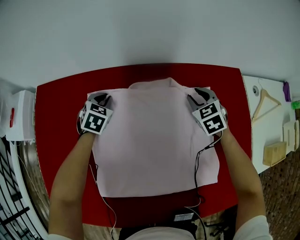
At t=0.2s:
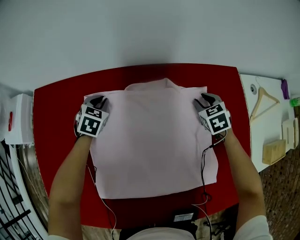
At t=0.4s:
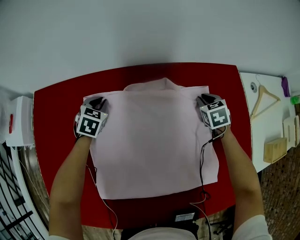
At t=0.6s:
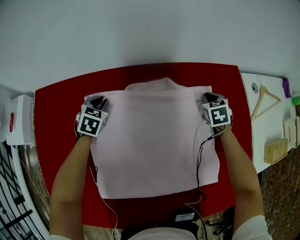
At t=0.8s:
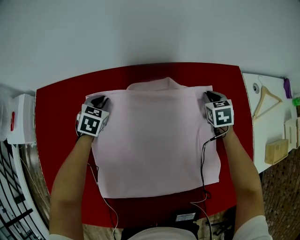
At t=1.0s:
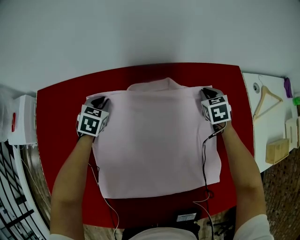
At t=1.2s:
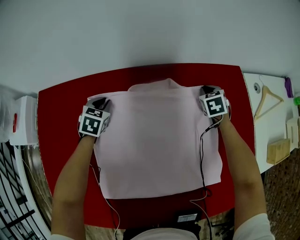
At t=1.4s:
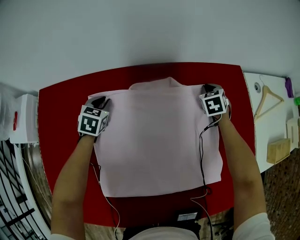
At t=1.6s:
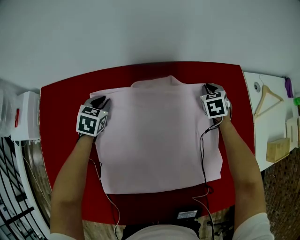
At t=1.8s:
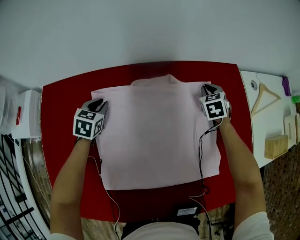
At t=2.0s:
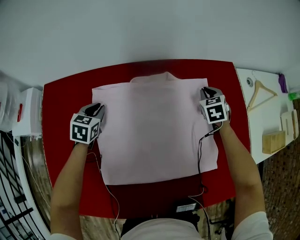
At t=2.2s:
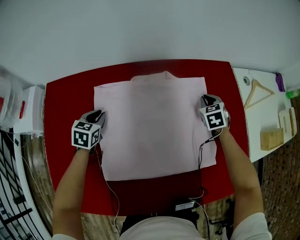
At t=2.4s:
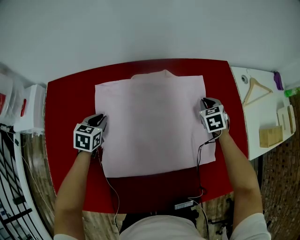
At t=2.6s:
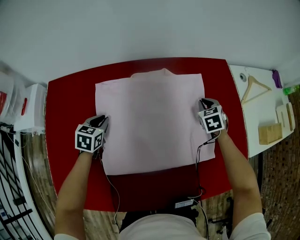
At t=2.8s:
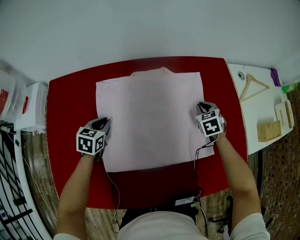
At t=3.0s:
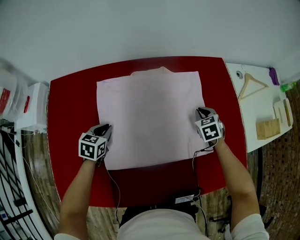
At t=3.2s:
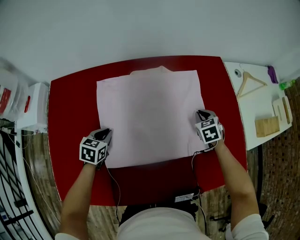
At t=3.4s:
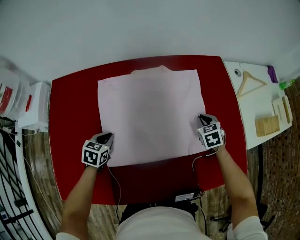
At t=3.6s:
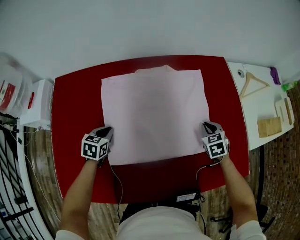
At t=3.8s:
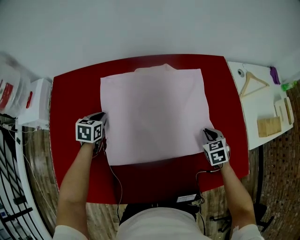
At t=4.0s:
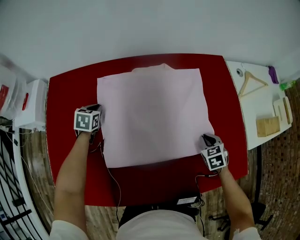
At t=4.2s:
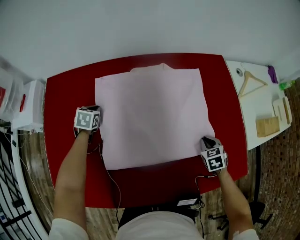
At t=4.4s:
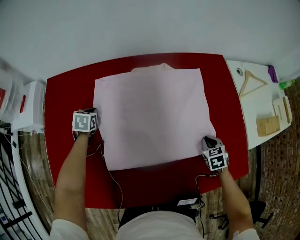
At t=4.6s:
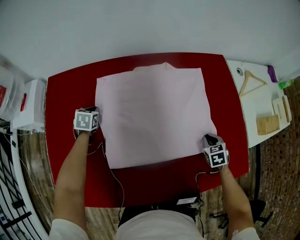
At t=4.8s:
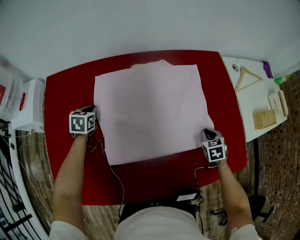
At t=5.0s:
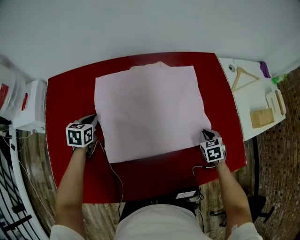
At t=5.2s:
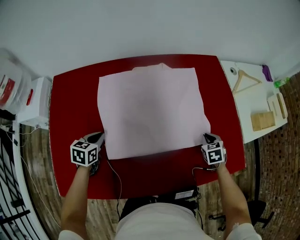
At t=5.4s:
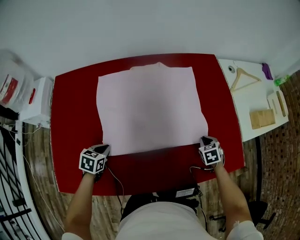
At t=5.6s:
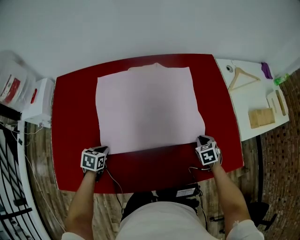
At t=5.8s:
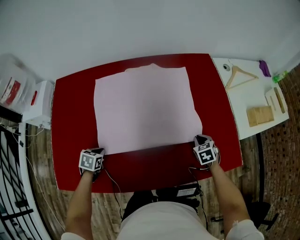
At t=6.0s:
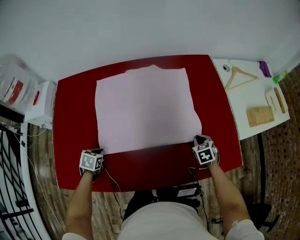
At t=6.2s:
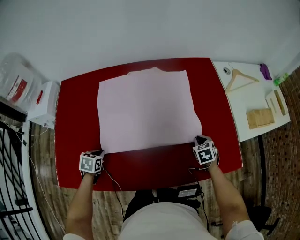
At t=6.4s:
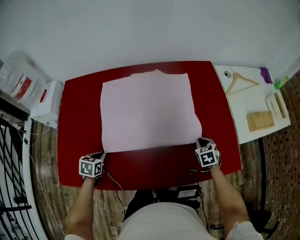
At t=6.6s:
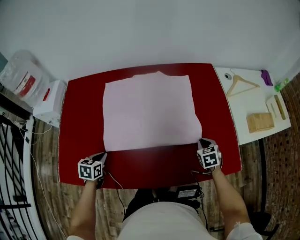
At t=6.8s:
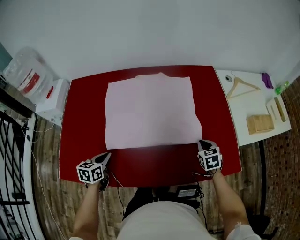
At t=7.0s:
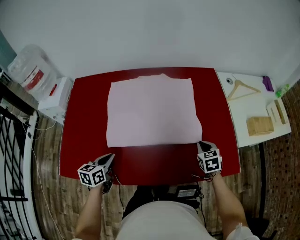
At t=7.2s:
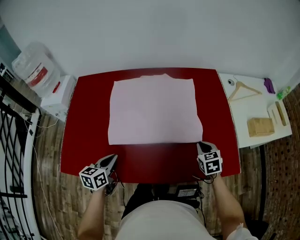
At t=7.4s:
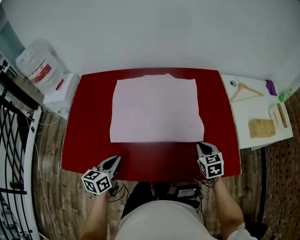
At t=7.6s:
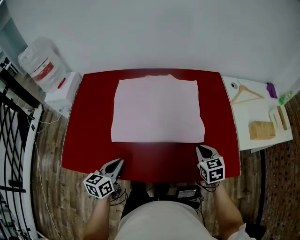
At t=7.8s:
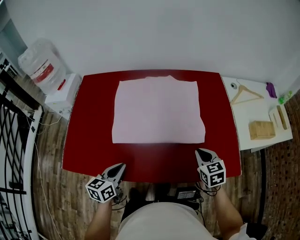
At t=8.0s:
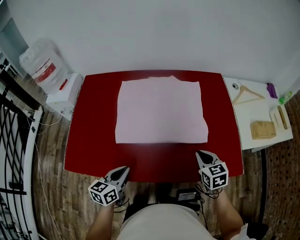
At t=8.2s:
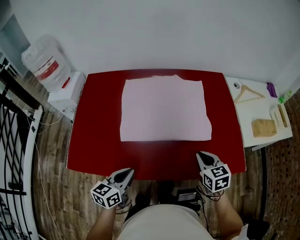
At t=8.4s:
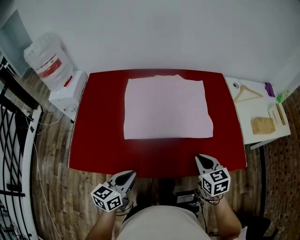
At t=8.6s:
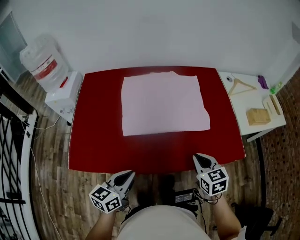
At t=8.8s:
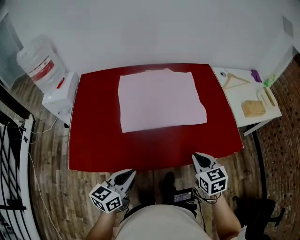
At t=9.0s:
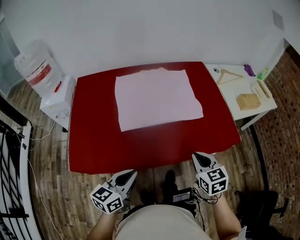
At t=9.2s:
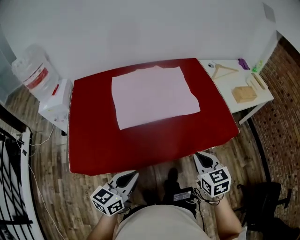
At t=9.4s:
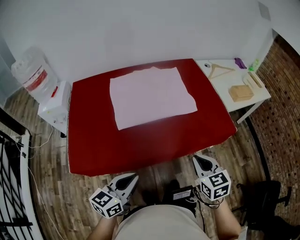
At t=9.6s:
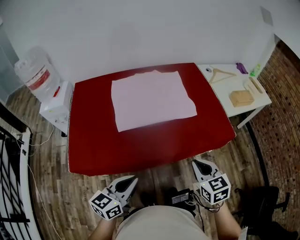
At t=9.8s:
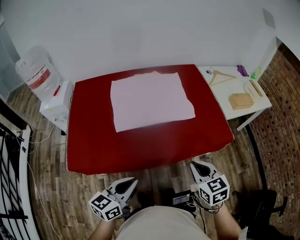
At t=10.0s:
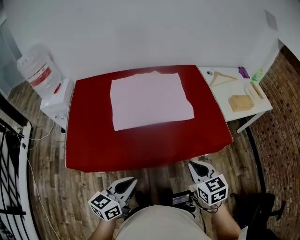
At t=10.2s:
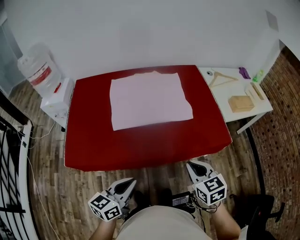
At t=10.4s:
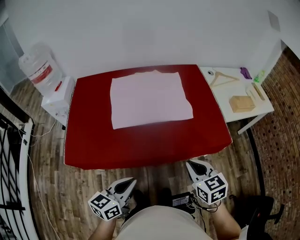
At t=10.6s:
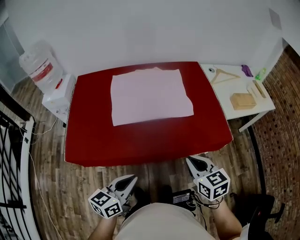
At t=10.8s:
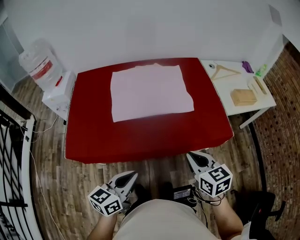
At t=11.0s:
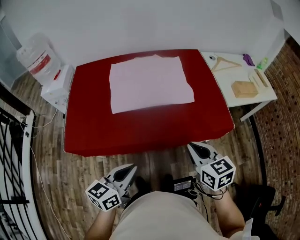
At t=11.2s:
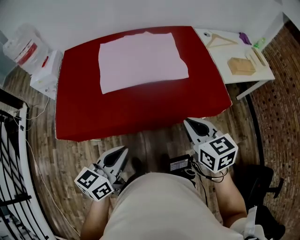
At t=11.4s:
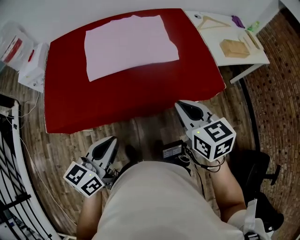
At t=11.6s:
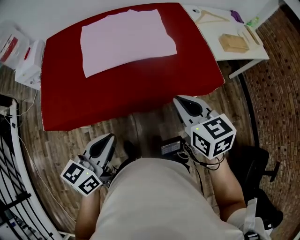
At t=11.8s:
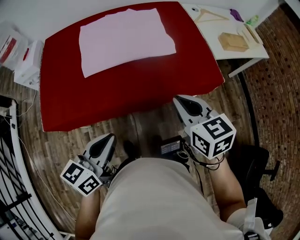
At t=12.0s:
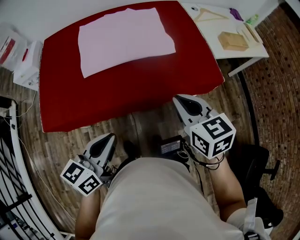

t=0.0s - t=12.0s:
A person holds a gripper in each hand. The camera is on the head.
t=0.0s - t=1.6s: The right gripper goes roughly 10 cm to the right.
t=1.6s - t=3.0s: Both grippers move backward, roughly 20 cm.
t=3.0s - t=4.4s: The left gripper shifts approximately 15 cm to the left, forward and downward. The right gripper travels backward and to the right by some 15 cm.
t=4.4s - t=6.0s: The left gripper travels backward and to the right by some 25 cm, while the right gripper ends up about 5 cm from where it was.
t=6.0s - t=7.6s: The right gripper heads upward and backward, covering approximately 15 cm, and turns by about 20 degrees, while the left gripper moves upward, to the right and backward, approximately 25 cm, and angles its fingers upward, by about 40 degrees.
t=7.6s - t=9.0s: The right gripper goes roughly 20 cm backward and to the left. The left gripper travels backward and upward by approximately 15 cm, and rotates about 20 degrees.
t=9.0s - t=10.4s: The left gripper is displaced to the right by roughly 10 cm. Meanwhile the right gripper shifts by roughly 5 cm.
t=10.4s - t=12.0s: The grippers stay close to where they were, moving slightly.

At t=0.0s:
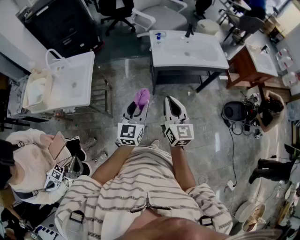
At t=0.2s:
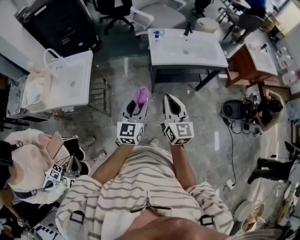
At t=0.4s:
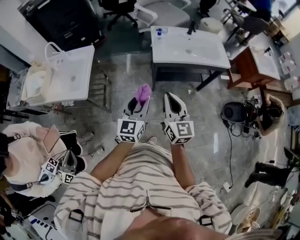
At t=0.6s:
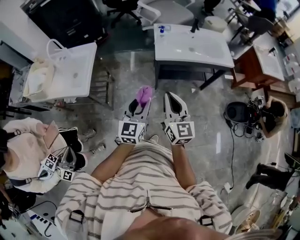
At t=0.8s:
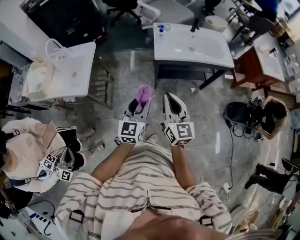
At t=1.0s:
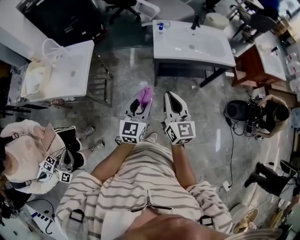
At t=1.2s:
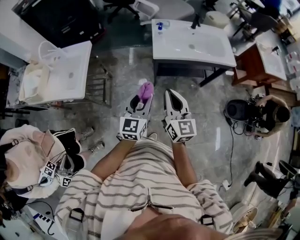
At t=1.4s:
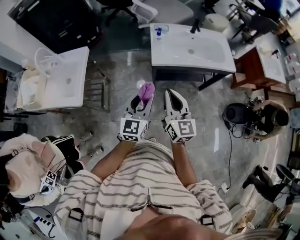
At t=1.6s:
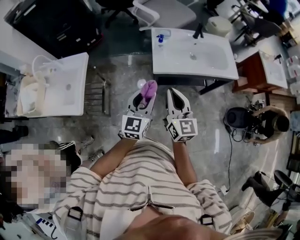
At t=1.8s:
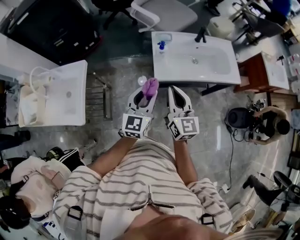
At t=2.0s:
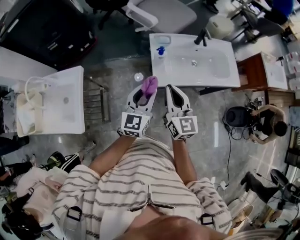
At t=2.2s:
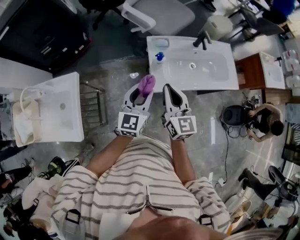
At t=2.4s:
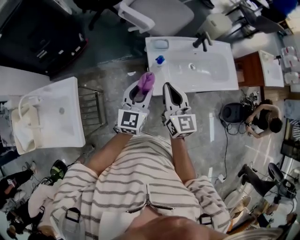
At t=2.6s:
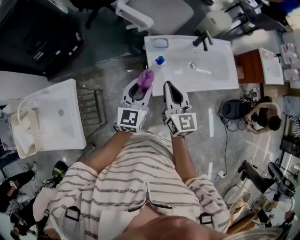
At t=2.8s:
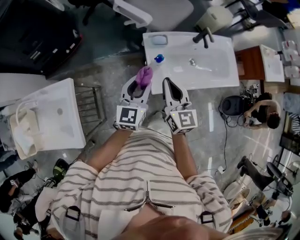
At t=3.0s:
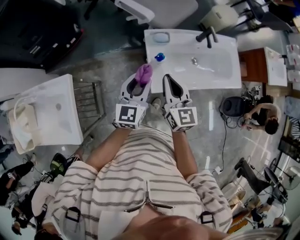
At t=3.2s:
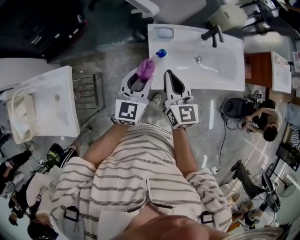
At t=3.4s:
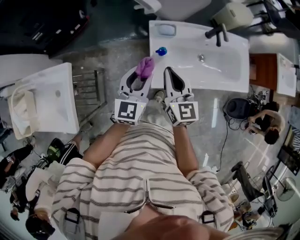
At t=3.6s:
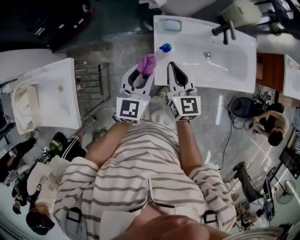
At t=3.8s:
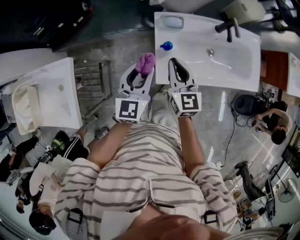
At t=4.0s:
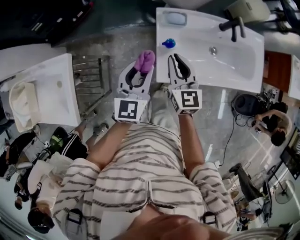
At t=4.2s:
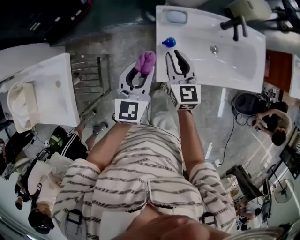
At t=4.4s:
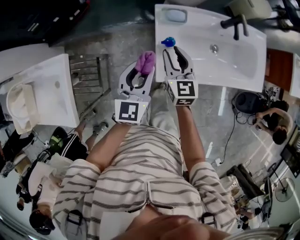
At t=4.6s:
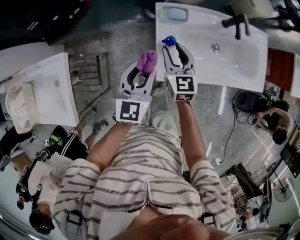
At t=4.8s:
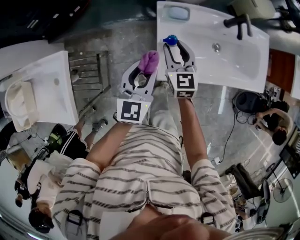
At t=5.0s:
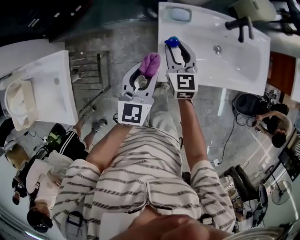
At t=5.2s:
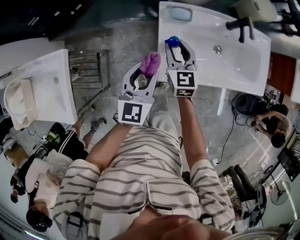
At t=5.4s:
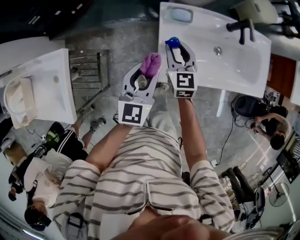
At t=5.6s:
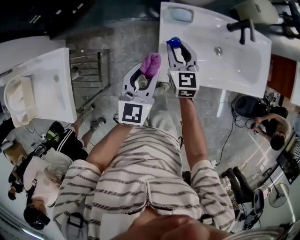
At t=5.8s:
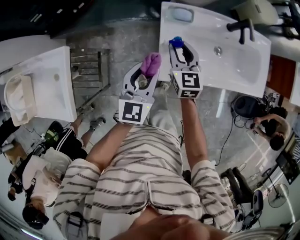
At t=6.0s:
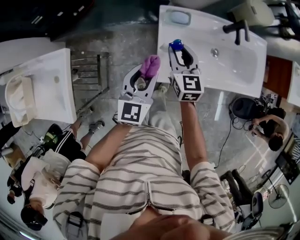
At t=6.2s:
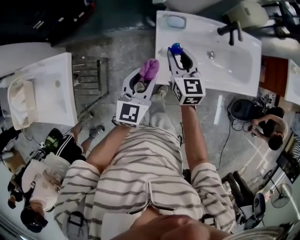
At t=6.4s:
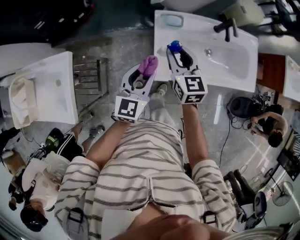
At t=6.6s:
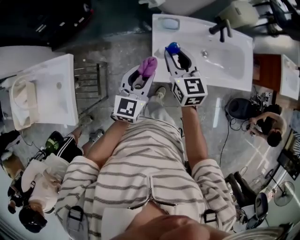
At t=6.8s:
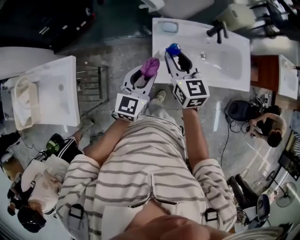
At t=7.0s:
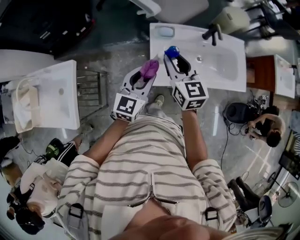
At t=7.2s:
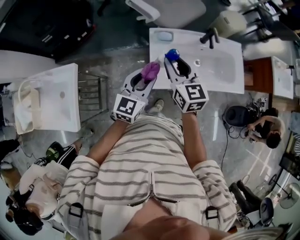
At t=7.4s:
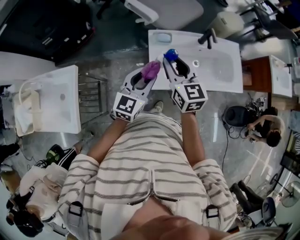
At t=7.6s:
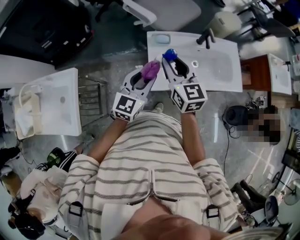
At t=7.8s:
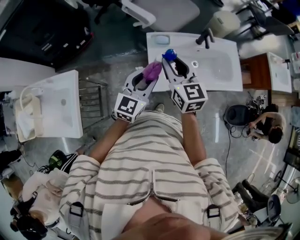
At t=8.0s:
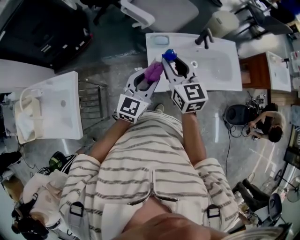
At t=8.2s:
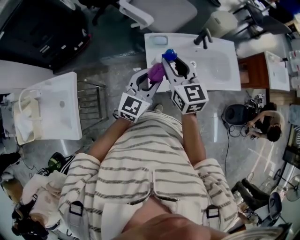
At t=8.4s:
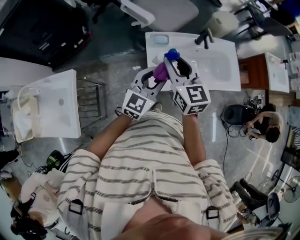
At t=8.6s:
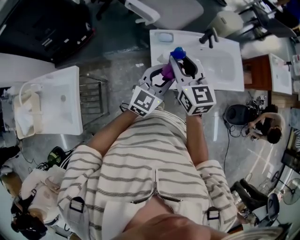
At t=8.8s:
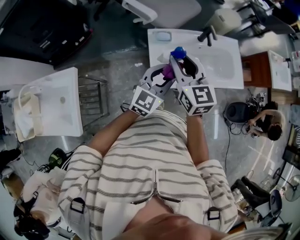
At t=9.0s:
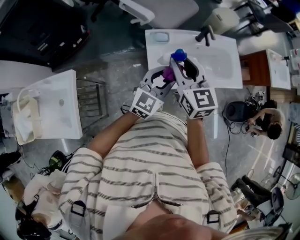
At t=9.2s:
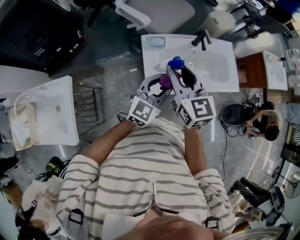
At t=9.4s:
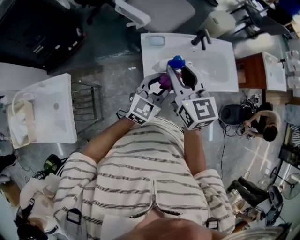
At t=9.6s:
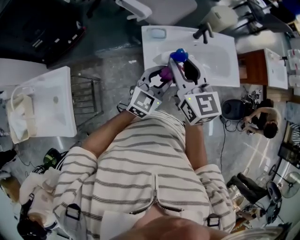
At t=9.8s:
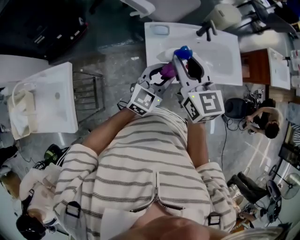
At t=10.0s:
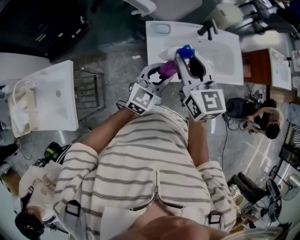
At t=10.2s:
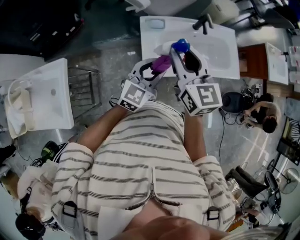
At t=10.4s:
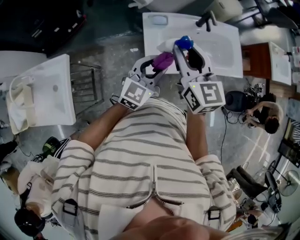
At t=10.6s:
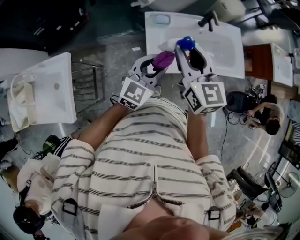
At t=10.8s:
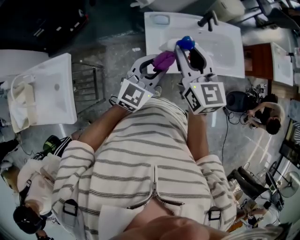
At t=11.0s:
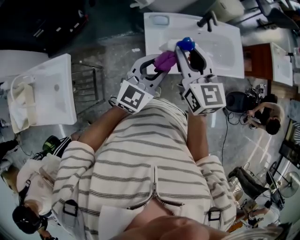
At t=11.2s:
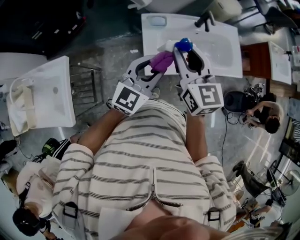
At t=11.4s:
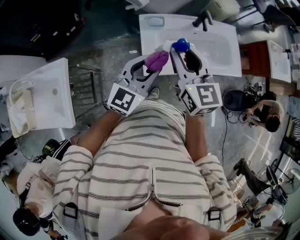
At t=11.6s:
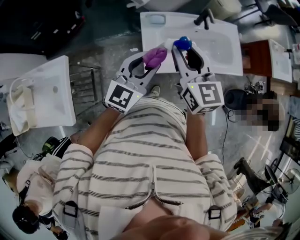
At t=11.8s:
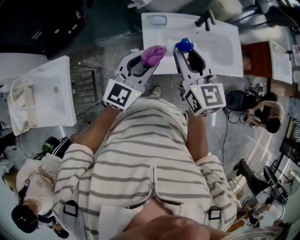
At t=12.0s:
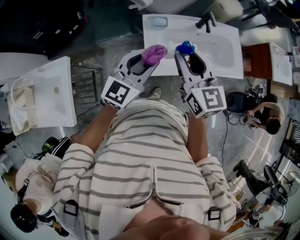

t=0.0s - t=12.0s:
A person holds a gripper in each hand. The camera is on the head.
t=0.0s - t=1.6s: The two grippers go some 15 cm forward.
t=1.6s - t=3.0s: The grippers both shift forward by about 25 cm.
t=3.0s - t=4.4s: The left gripper moves downward, approximately 5 cm. The right gripper goes approximately 15 cm downward and forward, and opens its fingers.
t=4.4s - t=6.0s: There are only small adjustments of the grippers.
t=6.0s - t=7.6s: The right gripper moves upward, some 20 cm. Meanwhile the left gripper moves upward, roughly 10 cm.
t=7.6s - t=9.0s: The left gripper moves to the right, about 10 cm.
t=9.0s - t=10.4s: The grippers stay close to where they were, moving slightly.
t=10.4s - t=12.0s: The left gripper moves upward, roughly 5 cm.
